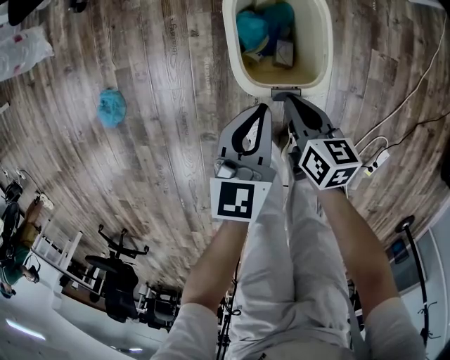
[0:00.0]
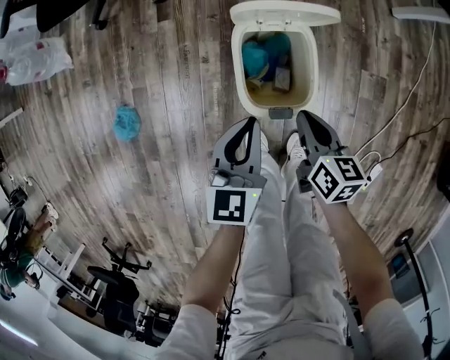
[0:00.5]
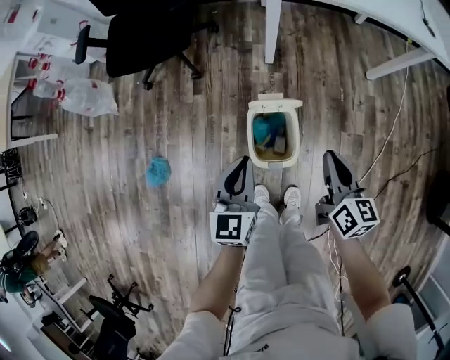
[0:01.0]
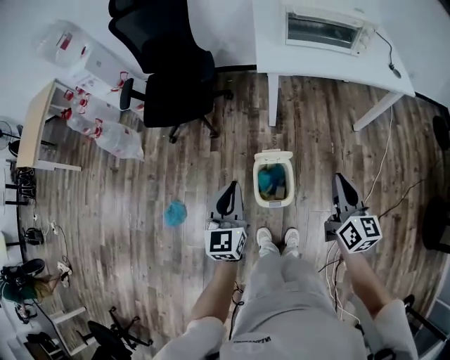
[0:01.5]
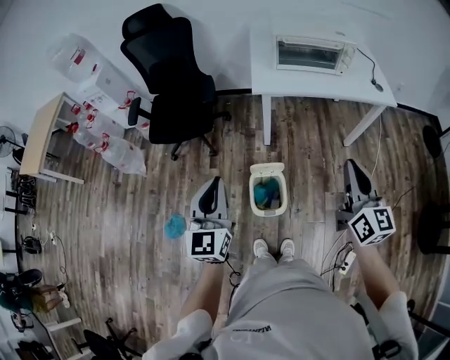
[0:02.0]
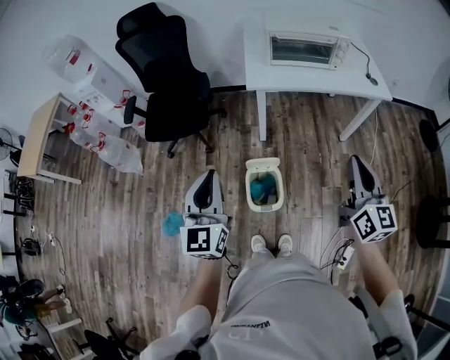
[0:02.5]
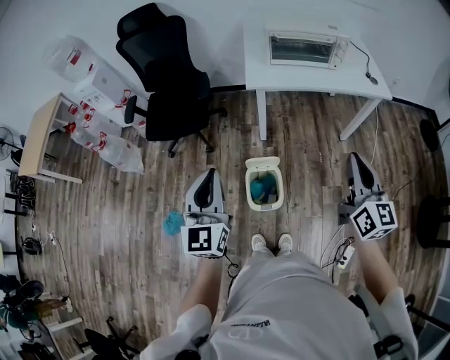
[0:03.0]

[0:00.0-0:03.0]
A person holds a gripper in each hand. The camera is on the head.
0:00.0 to 0:01.5: The two grippers go roughly 50 cm upward. The right gripper turns by about 40 degrees; the left gripper changes its angle by roughly 30 degrees.
0:01.5 to 0:03.0: The grippers both shift upward by approximately 20 cm.

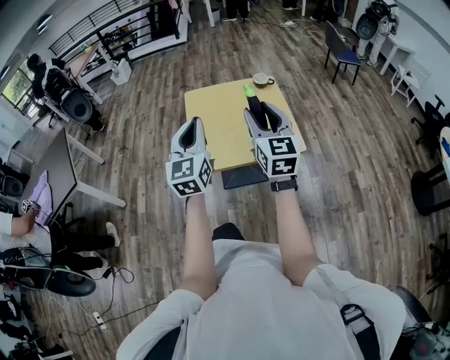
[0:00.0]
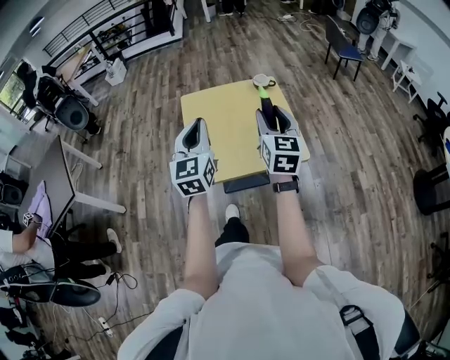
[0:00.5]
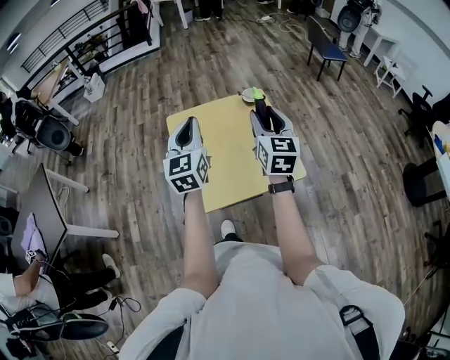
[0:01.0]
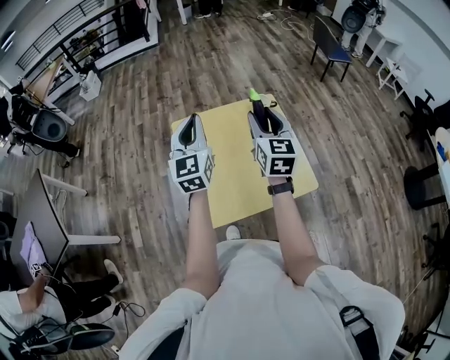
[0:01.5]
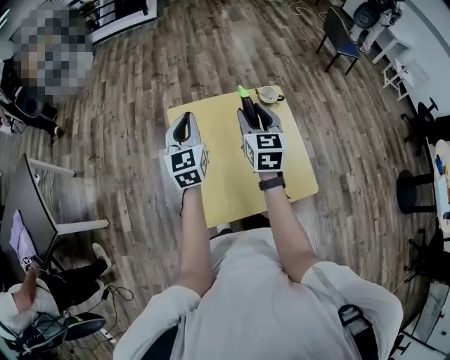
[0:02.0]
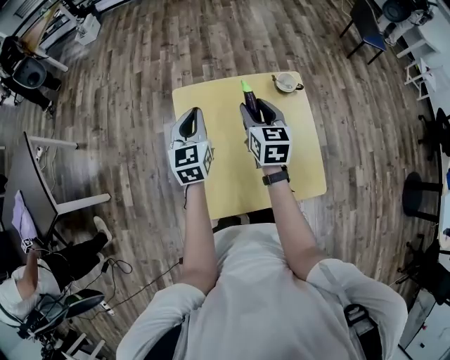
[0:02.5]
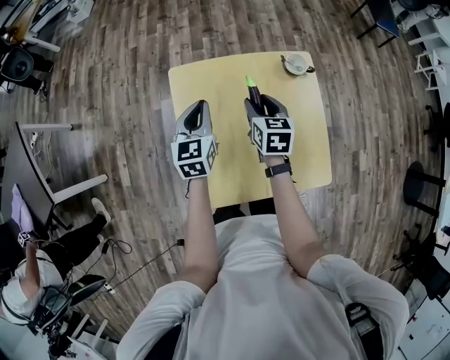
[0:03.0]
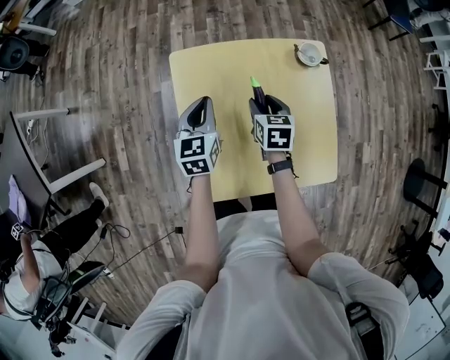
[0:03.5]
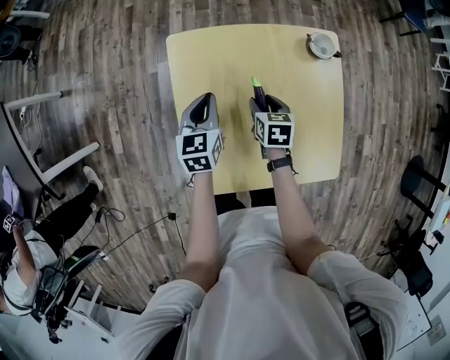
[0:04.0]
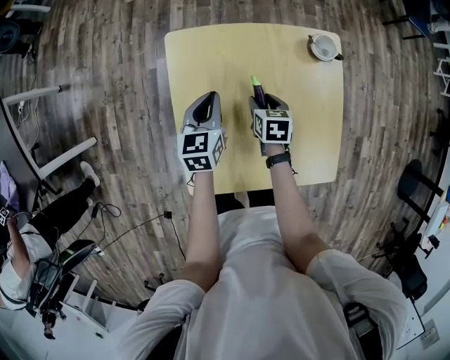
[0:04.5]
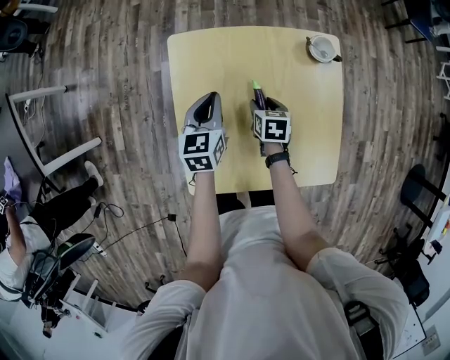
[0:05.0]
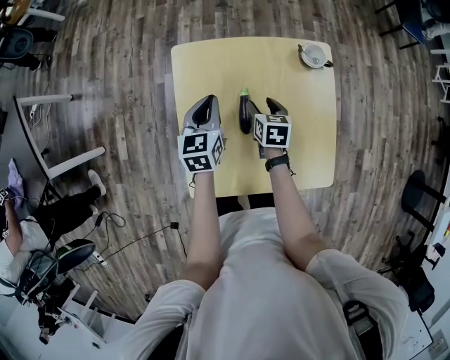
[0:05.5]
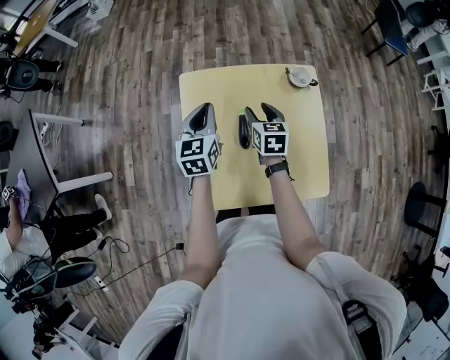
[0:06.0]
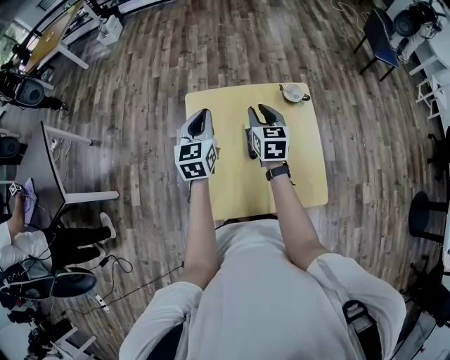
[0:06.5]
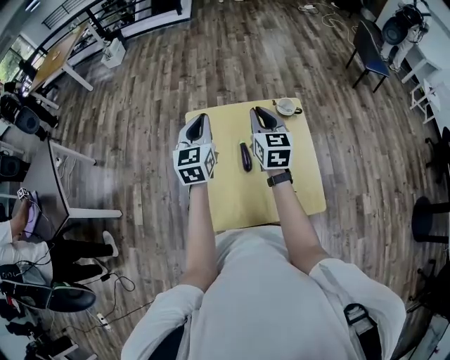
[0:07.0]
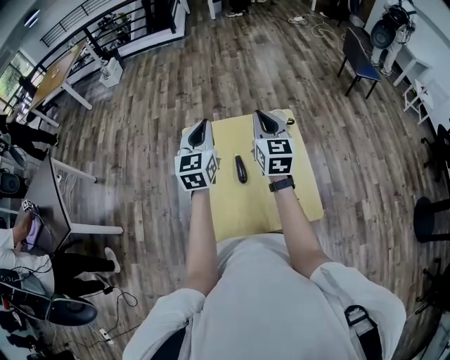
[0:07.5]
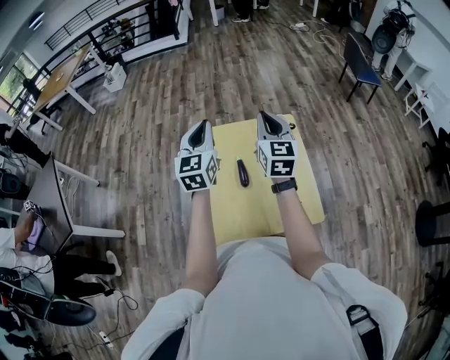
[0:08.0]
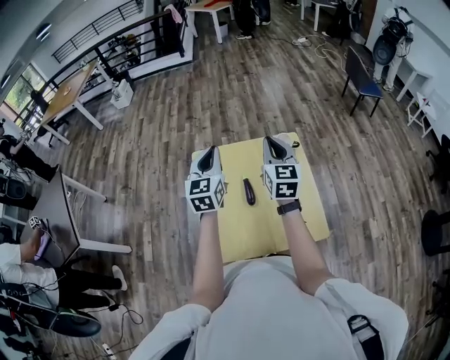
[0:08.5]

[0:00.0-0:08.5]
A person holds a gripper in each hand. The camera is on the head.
0:00.0 to 0:02.0: Both grippers travel together forward, approximately 35 cm.
0:02.0 to 0:04.0: Both grippers move downward, some 25 cm. The left gripper turns by some 30 degrees; the right gripper tips its fingers downward by about 40 degrees.
0:04.0 to 0:06.5: Both grippers travel together upward, roughly 20 cm. The right gripper rotates approximately 30 degrees.
0:06.5 to 0:08.5: The right gripper goes some 15 cm upward and to the right, and closes up; the left gripper goes roughly 10 cm upward.

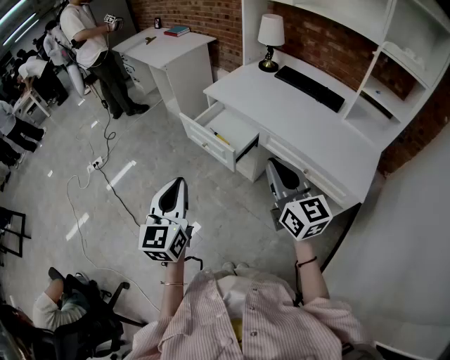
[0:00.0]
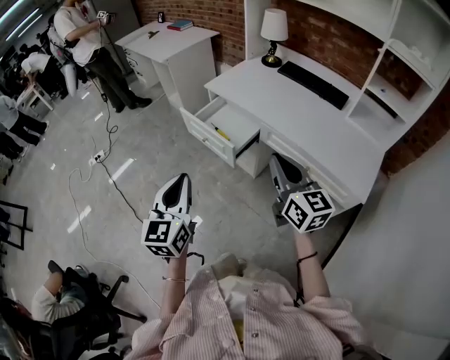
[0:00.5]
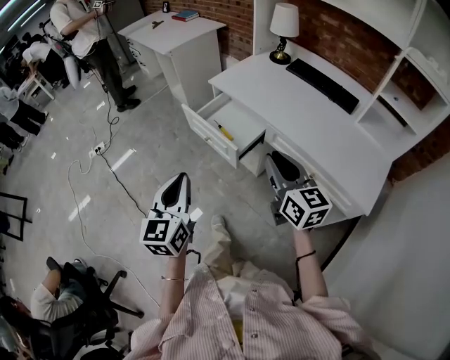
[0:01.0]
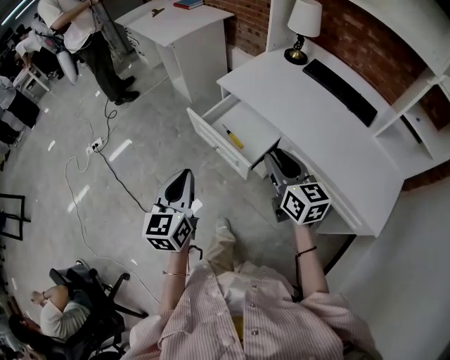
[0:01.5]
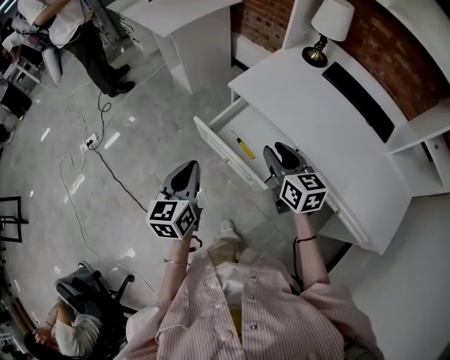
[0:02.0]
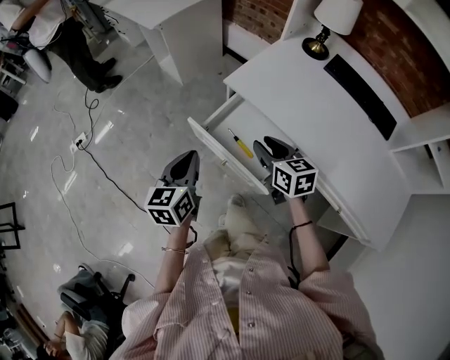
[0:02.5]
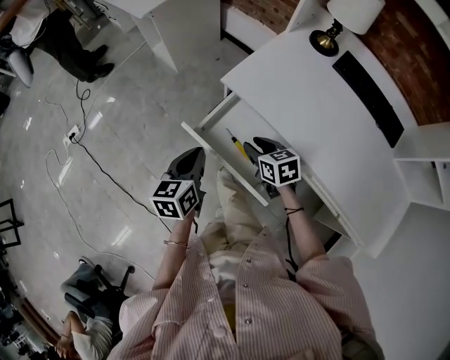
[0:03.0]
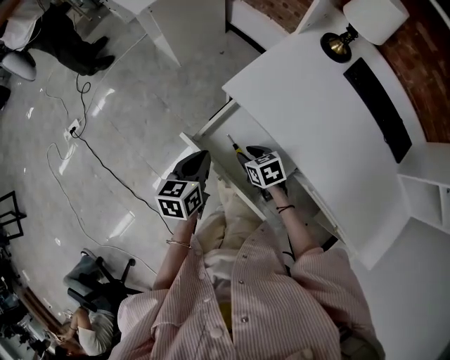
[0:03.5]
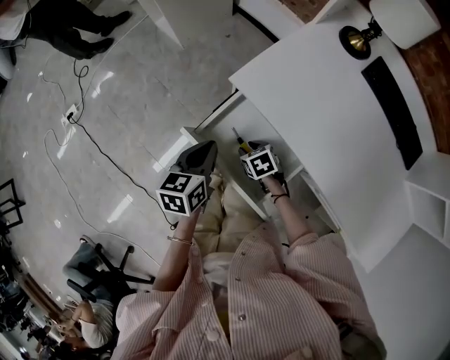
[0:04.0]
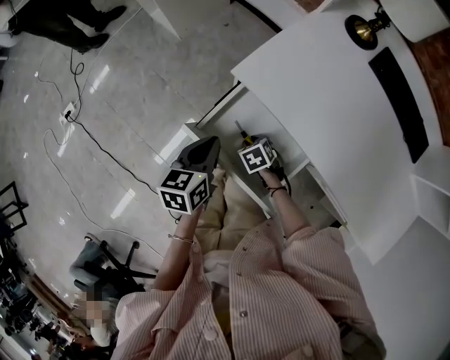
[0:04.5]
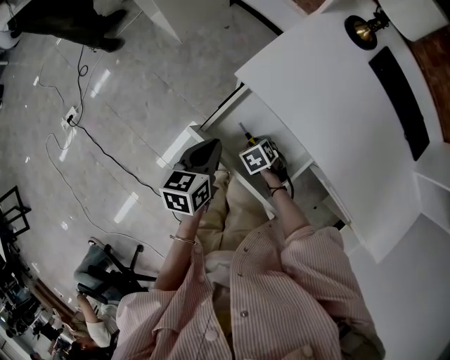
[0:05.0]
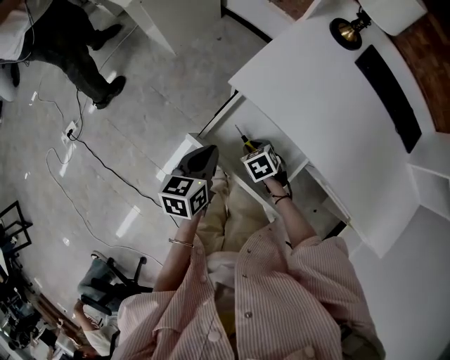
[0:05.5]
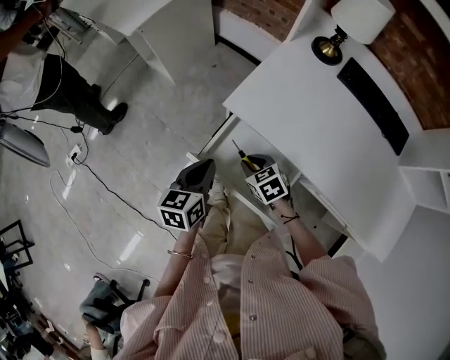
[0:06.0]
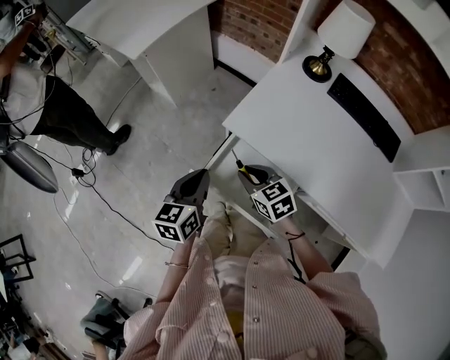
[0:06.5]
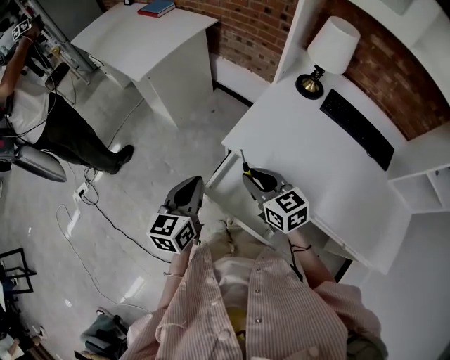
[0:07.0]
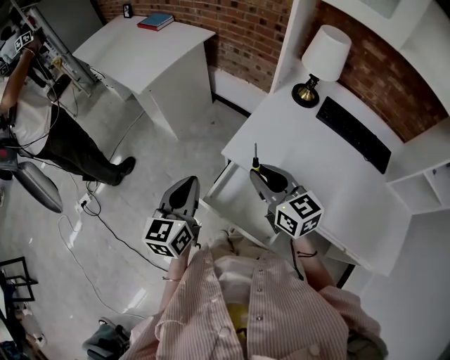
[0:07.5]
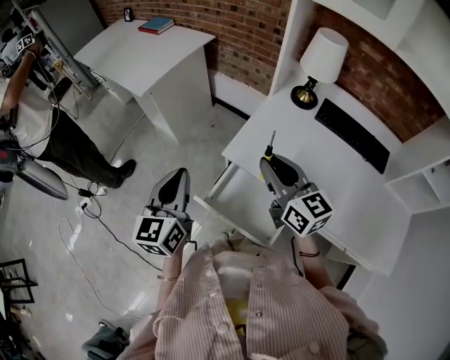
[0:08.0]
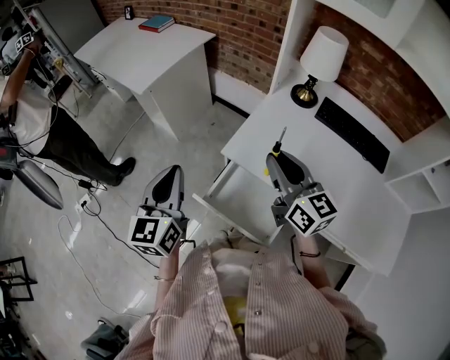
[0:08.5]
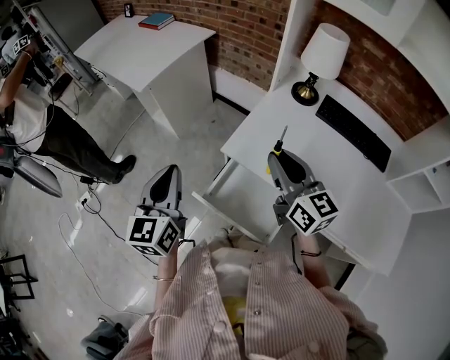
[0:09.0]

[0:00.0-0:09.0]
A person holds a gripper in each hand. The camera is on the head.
0:00.0 to 0:02.0: The left gripper heads forward, covering some 30 cm, while the right gripper goes some 35 cm forward and downward, turns by approximately 20 degrees, and opens up.
0:02.0 to 0:04.5: The right gripper goes roughly 35 cm downward and forward, and angles its fingers downward, by approximately 50 degrees. The left gripper travels forward and downward by roughly 25 cm, and rotates approximately 30 degrees.
0:04.5 to 0:07.0: The right gripper is displaced upward by about 30 cm, and tilts its fingers roughly 50 degrees upward. Meanwhile the left gripper moves upward, about 15 cm, and rotates some 20 degrees.
0:07.0 to 0:09.0: The left gripper is displaced upward by roughly 10 cm; the right gripper heads upward and to the right, covering roughly 15 cm, and rotates approximately 30 degrees.

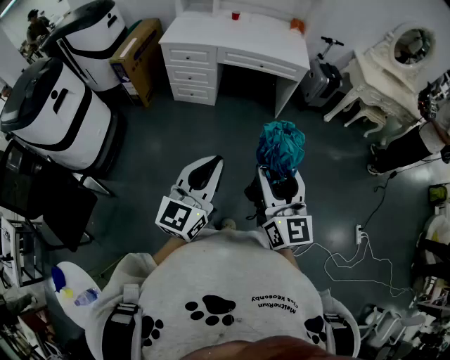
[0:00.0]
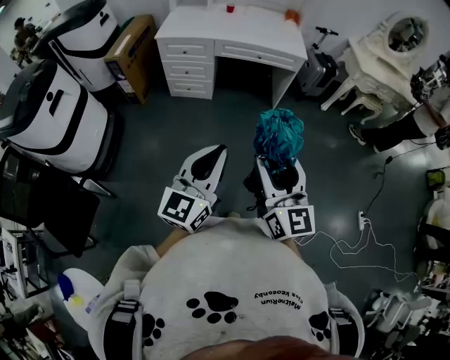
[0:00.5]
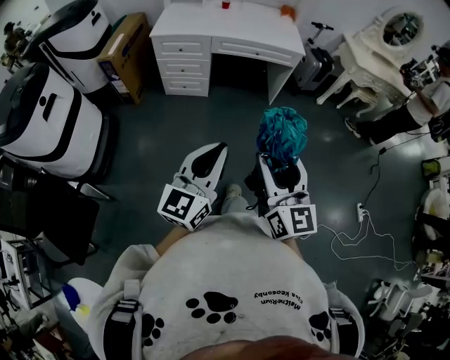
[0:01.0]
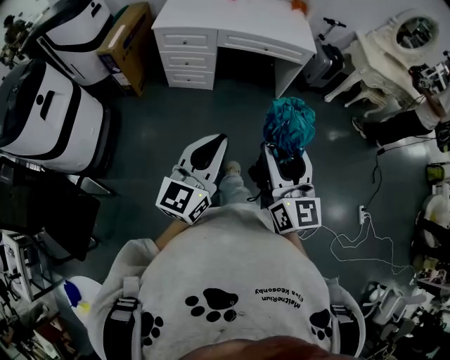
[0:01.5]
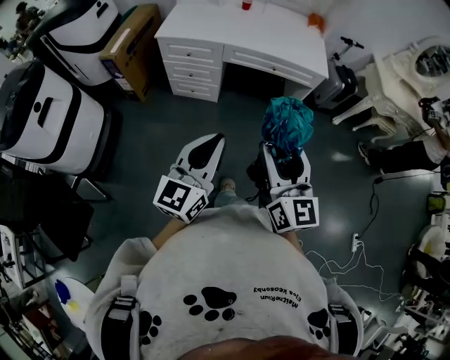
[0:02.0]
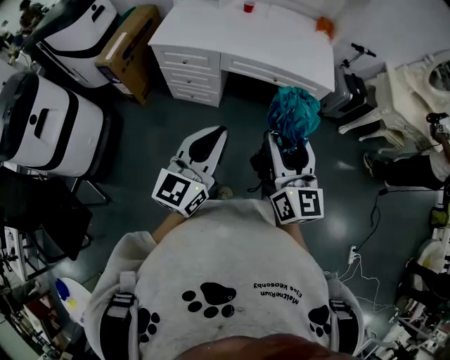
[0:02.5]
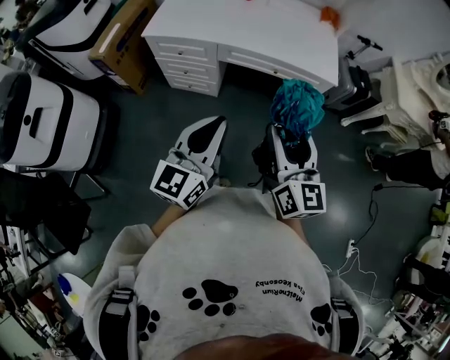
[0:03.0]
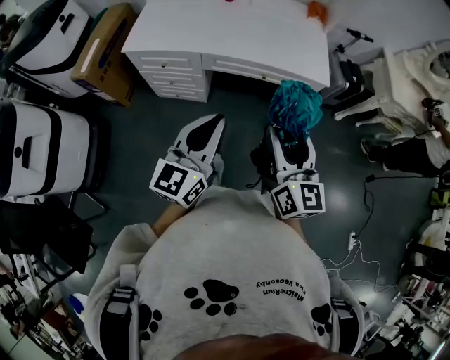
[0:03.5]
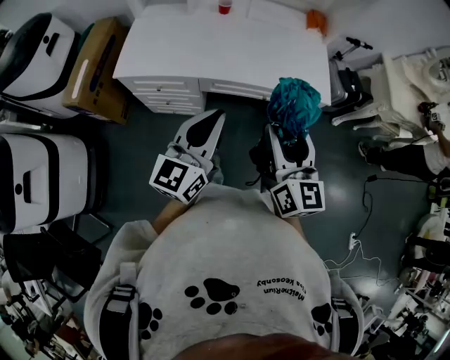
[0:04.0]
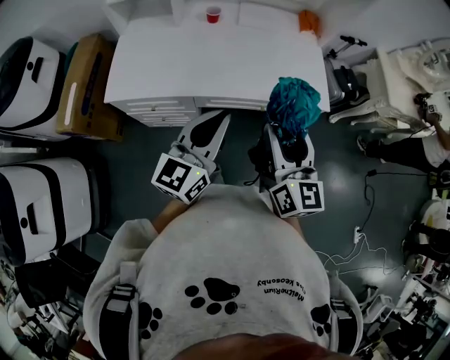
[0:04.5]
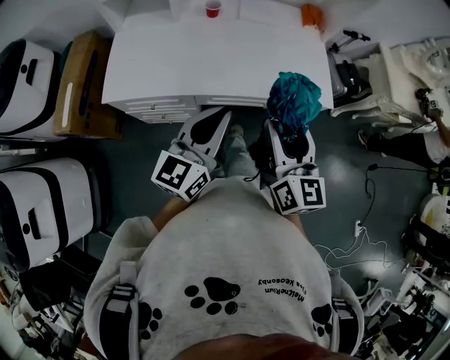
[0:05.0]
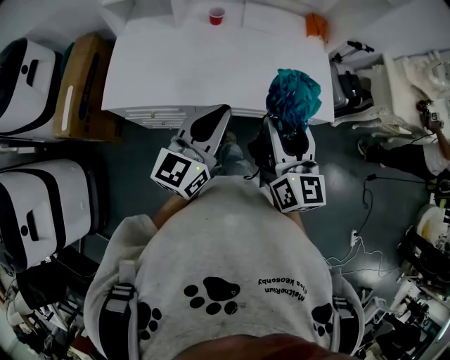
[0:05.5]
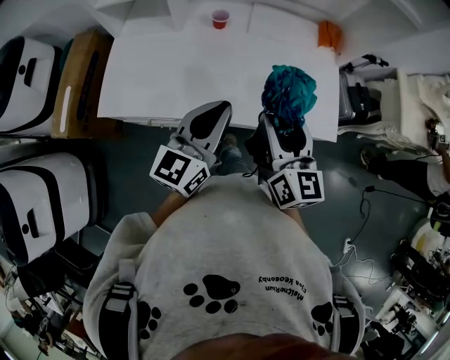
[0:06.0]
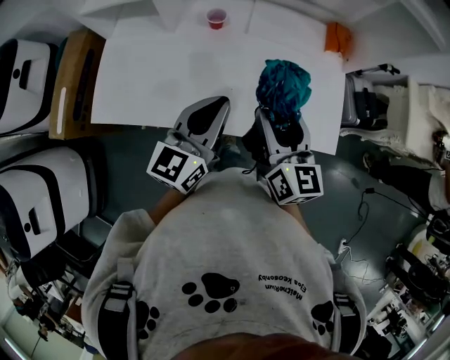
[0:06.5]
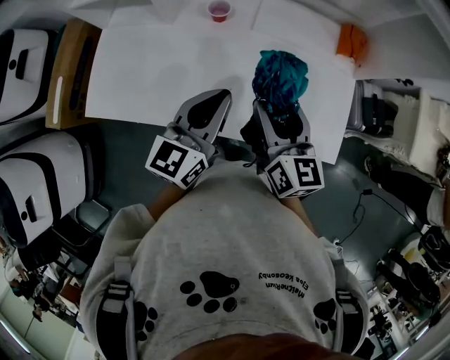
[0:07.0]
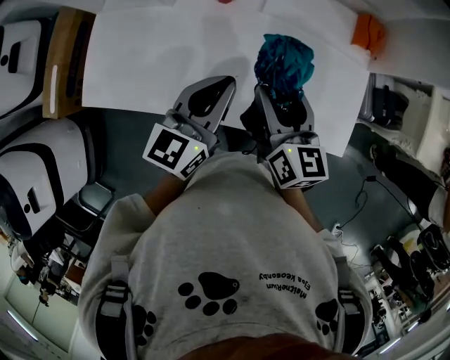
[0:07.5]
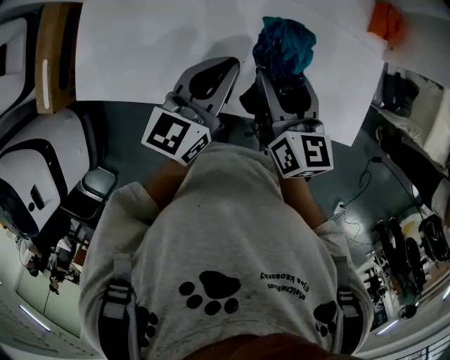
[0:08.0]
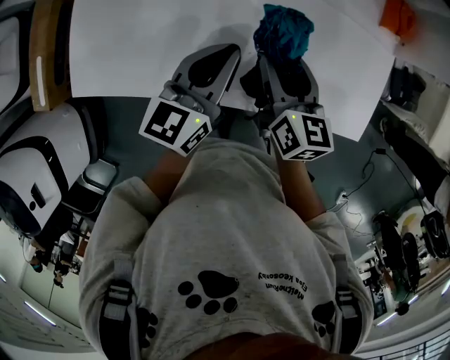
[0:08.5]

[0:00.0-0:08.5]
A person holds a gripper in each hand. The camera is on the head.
0:00.0 to 0:02.0: The grippers both shift forward by roughly 25 cm.
0:02.0 to 0:04.0: The two grippers travel together, forward, some 40 cm.
0:04.0 to 0:06.5: Both grippers move forward, about 35 cm.
0:06.5 to 0:08.5: Both grippers travel together downward and forward, about 20 cm.
